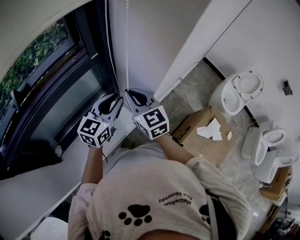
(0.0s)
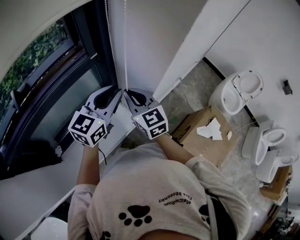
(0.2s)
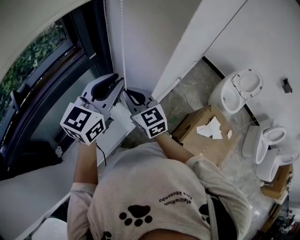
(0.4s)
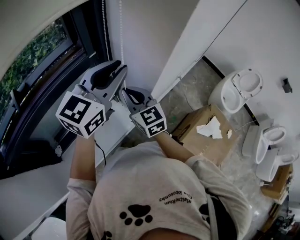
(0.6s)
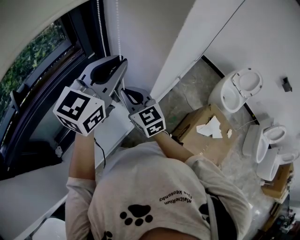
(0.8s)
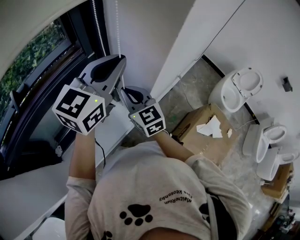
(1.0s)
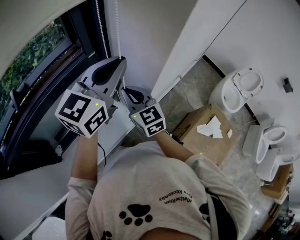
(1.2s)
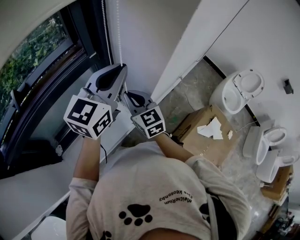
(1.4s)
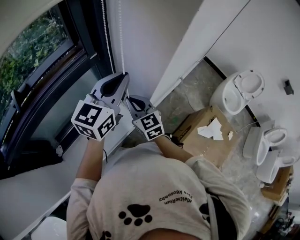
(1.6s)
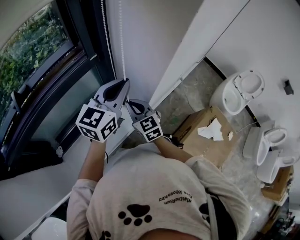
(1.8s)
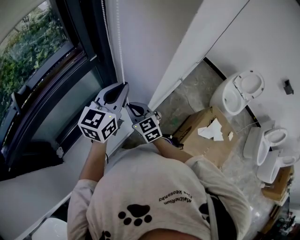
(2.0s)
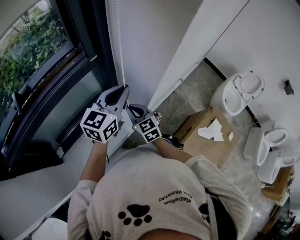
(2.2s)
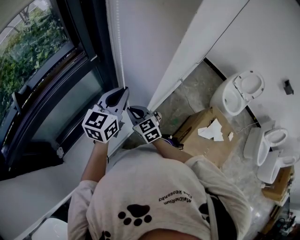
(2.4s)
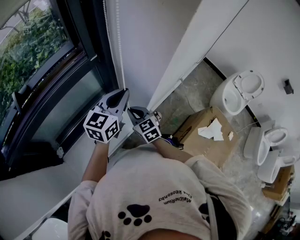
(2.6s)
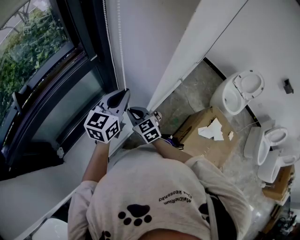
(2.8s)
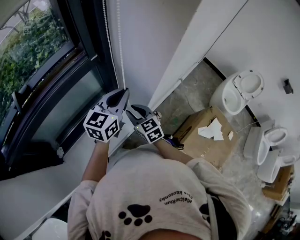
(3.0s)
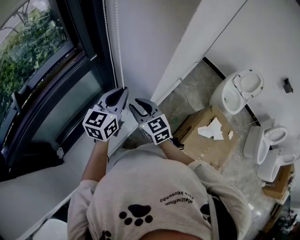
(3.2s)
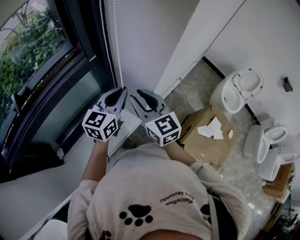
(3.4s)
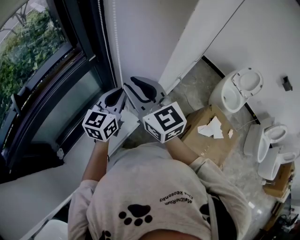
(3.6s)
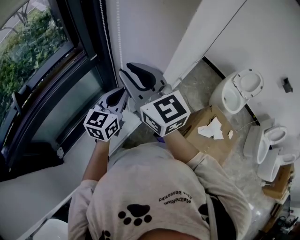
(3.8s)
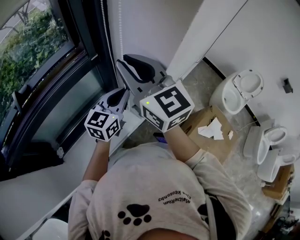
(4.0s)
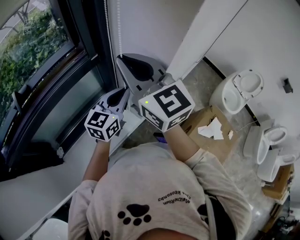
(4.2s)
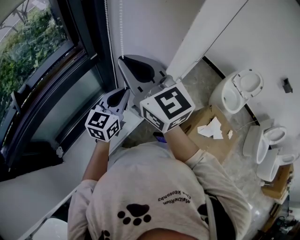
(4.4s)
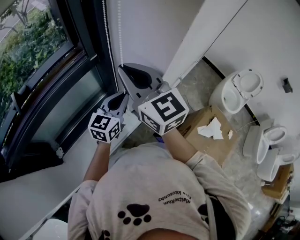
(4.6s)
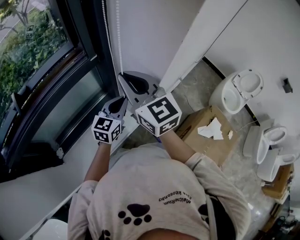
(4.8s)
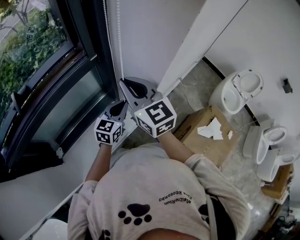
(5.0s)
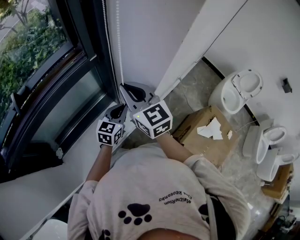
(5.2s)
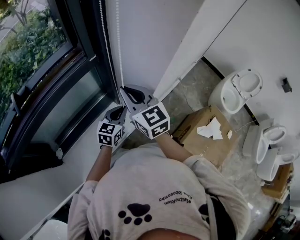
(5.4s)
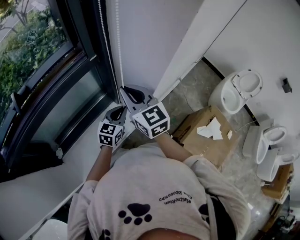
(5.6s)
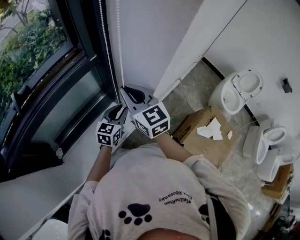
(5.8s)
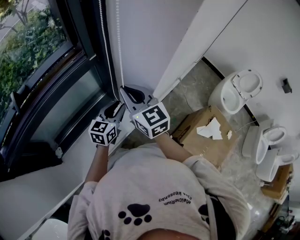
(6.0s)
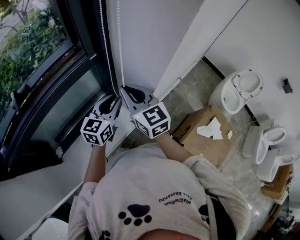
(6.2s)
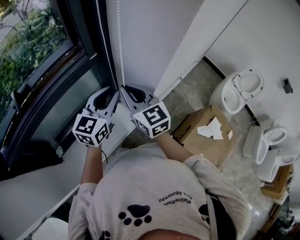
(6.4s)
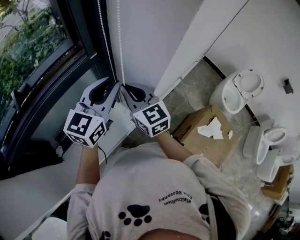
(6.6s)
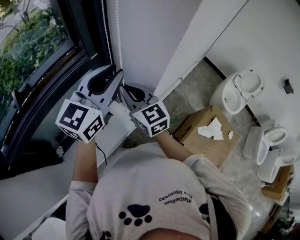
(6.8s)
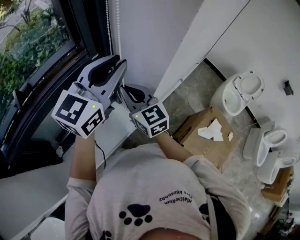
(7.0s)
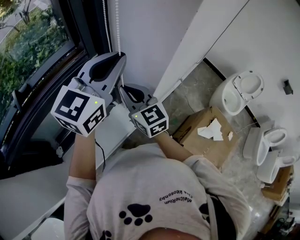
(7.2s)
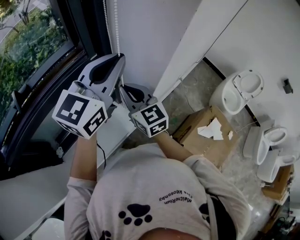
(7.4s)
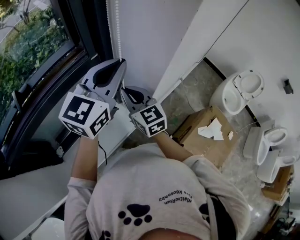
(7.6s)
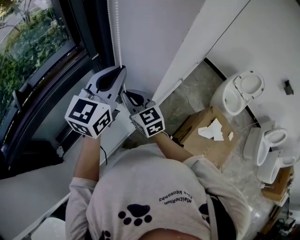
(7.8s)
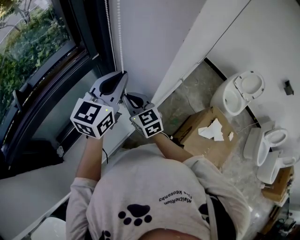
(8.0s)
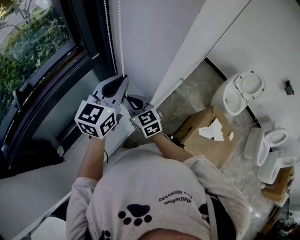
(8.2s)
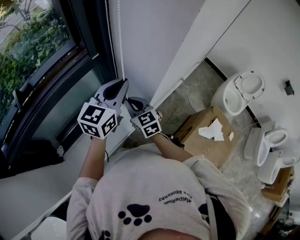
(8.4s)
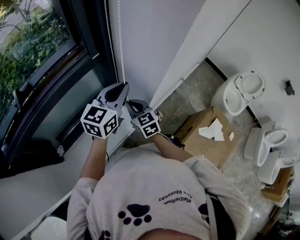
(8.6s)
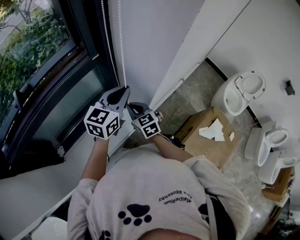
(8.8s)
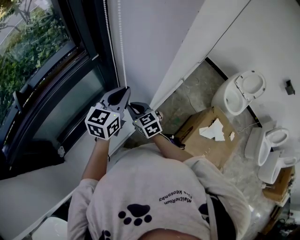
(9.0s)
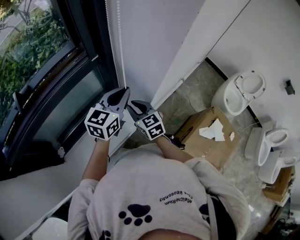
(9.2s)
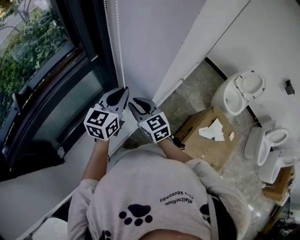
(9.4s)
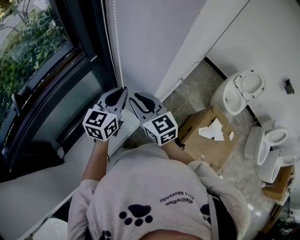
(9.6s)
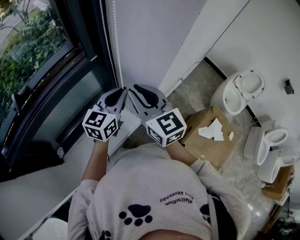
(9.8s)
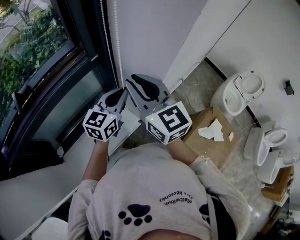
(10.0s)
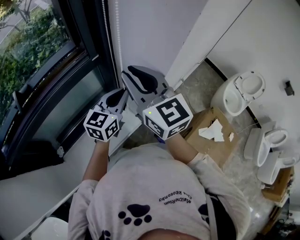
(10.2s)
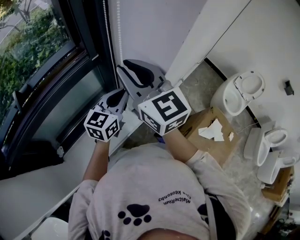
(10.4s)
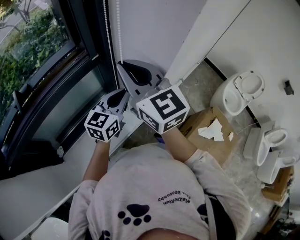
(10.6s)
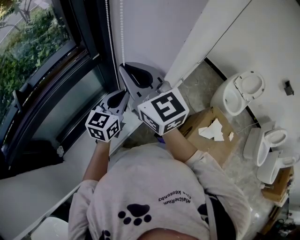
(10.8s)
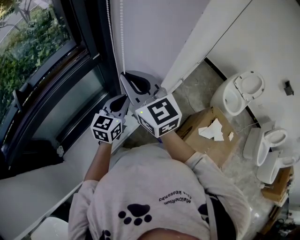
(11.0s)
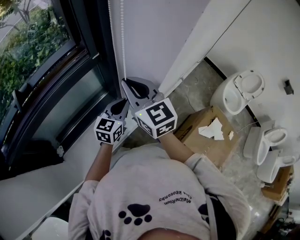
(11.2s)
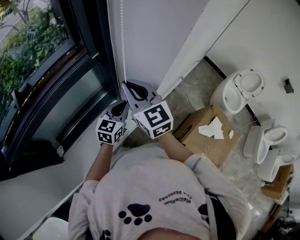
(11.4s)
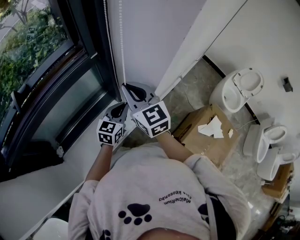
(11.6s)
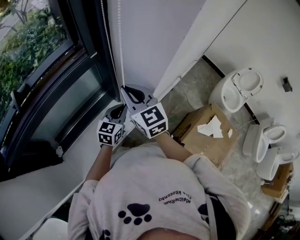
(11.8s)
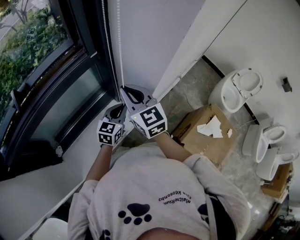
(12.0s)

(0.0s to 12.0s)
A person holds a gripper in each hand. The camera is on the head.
0.0s - 1.6s: The right gripper shifts some 5 cm downward. The left gripper is displaced upward by some 10 cm, and closes.
1.6s - 3.0s: The grippers both shift downward by some 10 cm. The right gripper opens up.
3.0s - 4.4s: The right gripper shifts approximately 30 cm upward, rotates about 30 degrees, and closes its fingers.
4.4s - 6.0s: Both grippers move downward, some 15 cm. The left gripper opens.
6.0s - 7.6s: The left gripper heads upward, covering some 25 cm, changes its angle by some 20 degrees, and closes its fingers.
7.6s - 9.0s: The two grippers go some 15 cm downward.
9.0s - 10.4s: The right gripper is displaced upward by approximately 30 cm, and swivels roughly 30 degrees.
10.4s - 12.0s: The grippers both shift downward by roughly 15 cm.

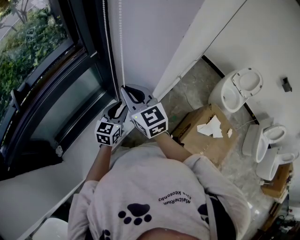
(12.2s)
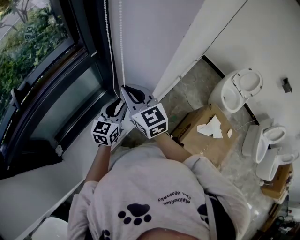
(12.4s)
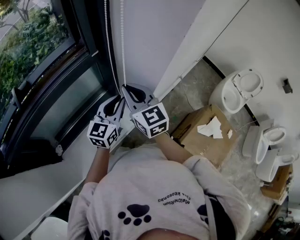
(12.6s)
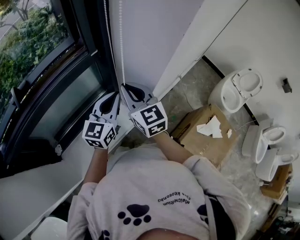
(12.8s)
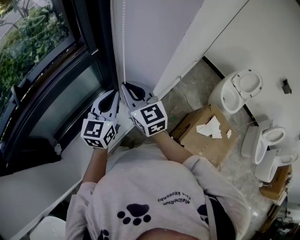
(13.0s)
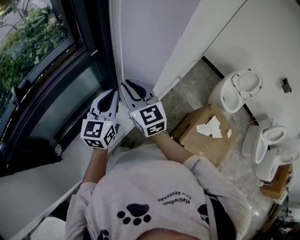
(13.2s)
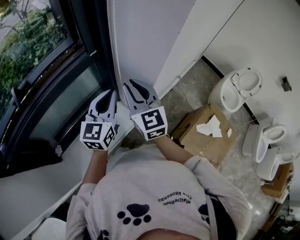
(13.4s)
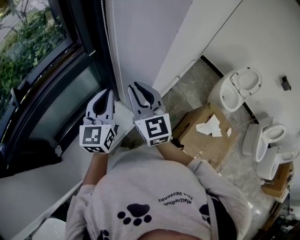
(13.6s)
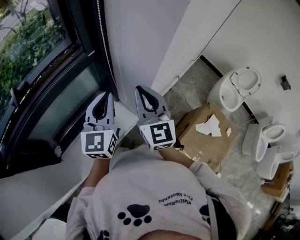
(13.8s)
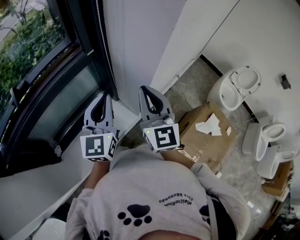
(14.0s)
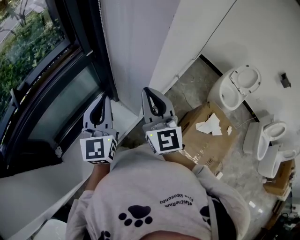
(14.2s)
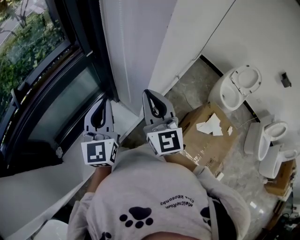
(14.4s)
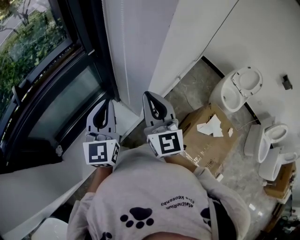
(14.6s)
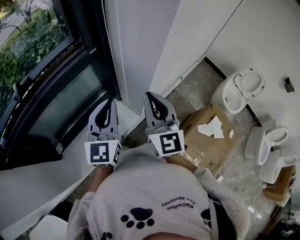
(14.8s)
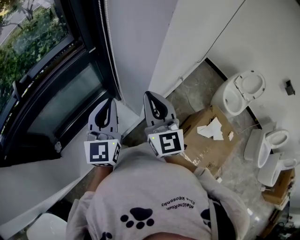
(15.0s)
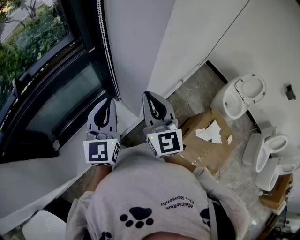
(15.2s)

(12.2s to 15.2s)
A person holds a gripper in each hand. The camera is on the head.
12.2s - 13.8s: The right gripper goes approximately 5 cm to the right; the left gripper goes approximately 20 cm upward, turns by about 30 degrees, and closes.
13.8s - 15.2s: The grippers stay close to where they were, moving slightly.

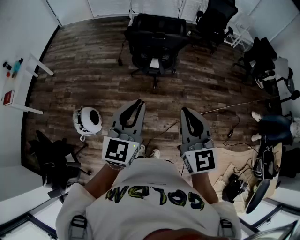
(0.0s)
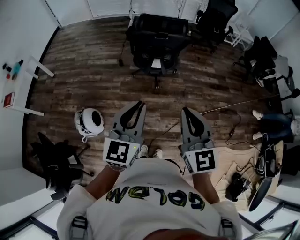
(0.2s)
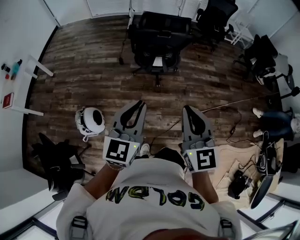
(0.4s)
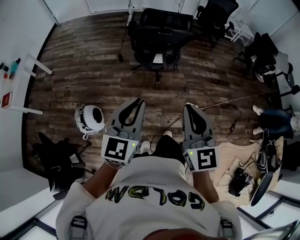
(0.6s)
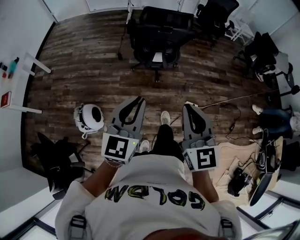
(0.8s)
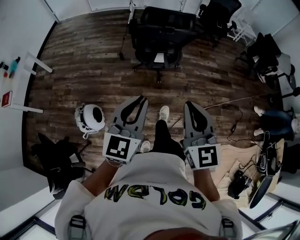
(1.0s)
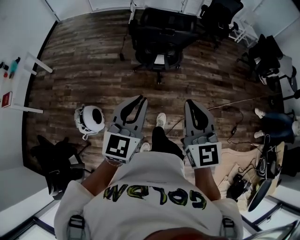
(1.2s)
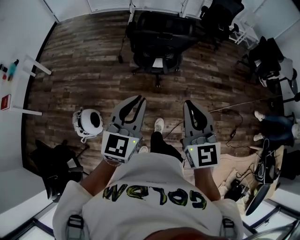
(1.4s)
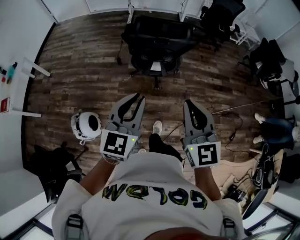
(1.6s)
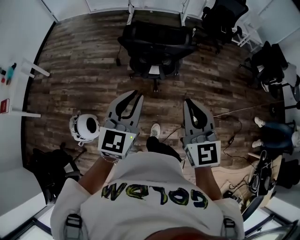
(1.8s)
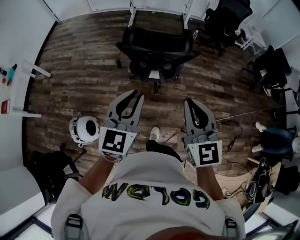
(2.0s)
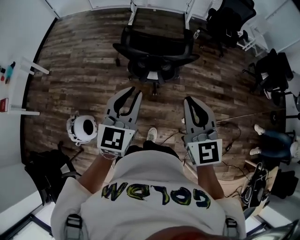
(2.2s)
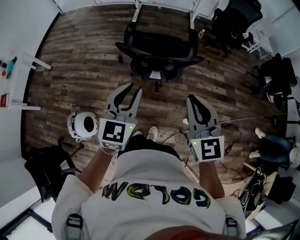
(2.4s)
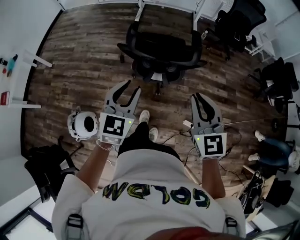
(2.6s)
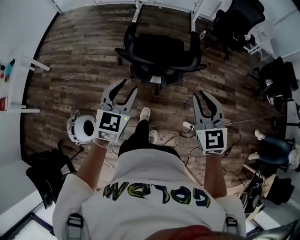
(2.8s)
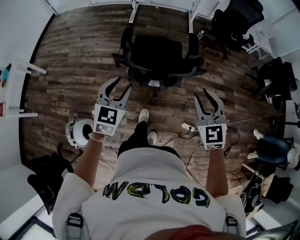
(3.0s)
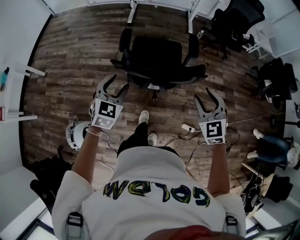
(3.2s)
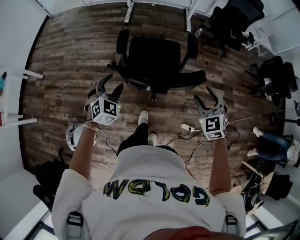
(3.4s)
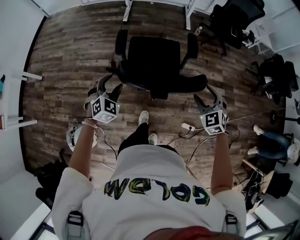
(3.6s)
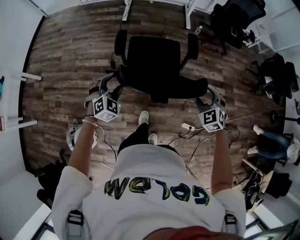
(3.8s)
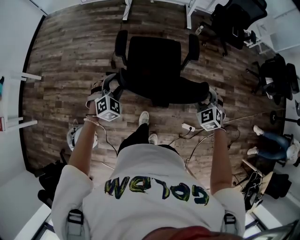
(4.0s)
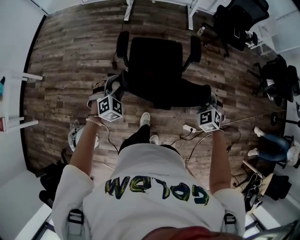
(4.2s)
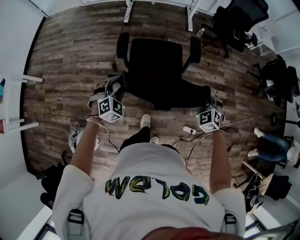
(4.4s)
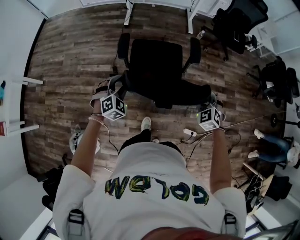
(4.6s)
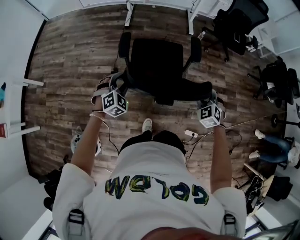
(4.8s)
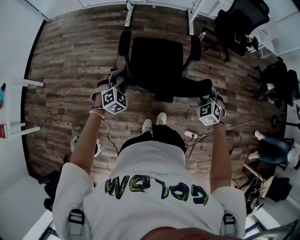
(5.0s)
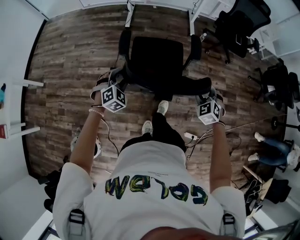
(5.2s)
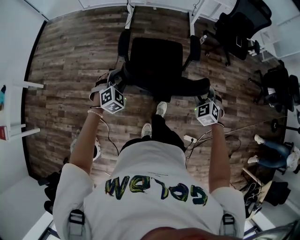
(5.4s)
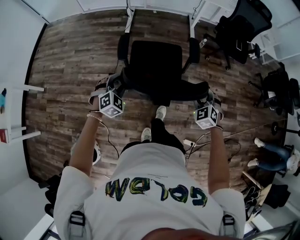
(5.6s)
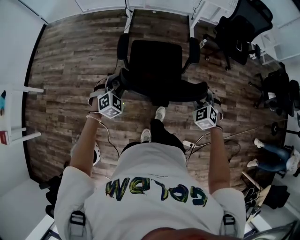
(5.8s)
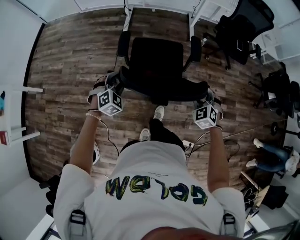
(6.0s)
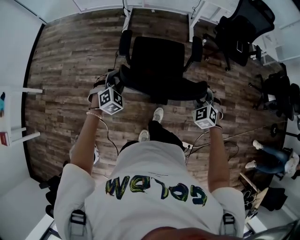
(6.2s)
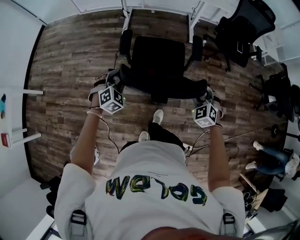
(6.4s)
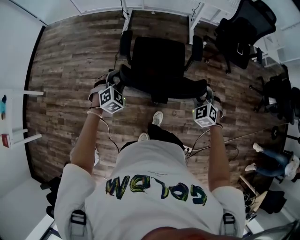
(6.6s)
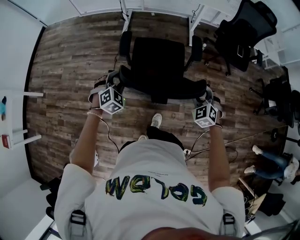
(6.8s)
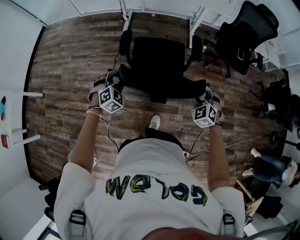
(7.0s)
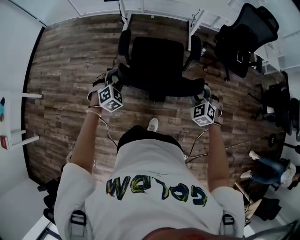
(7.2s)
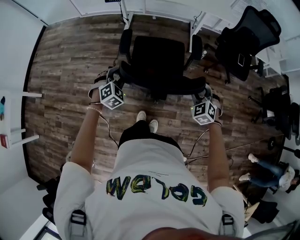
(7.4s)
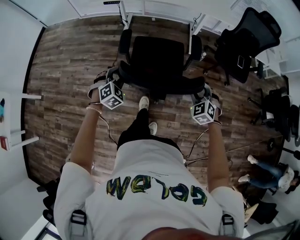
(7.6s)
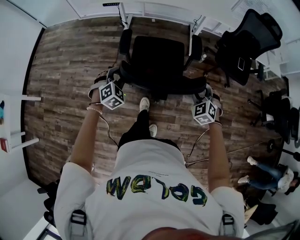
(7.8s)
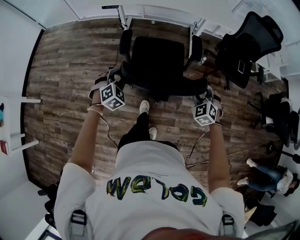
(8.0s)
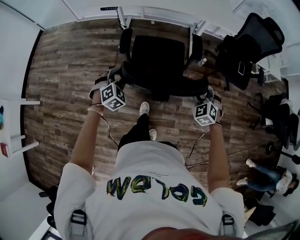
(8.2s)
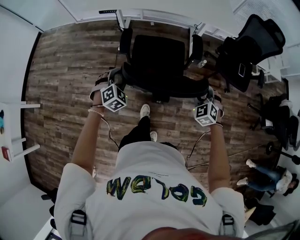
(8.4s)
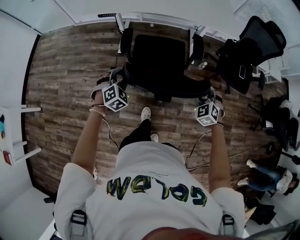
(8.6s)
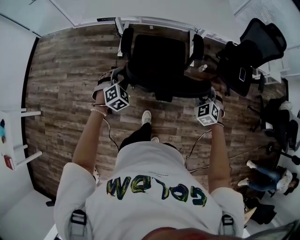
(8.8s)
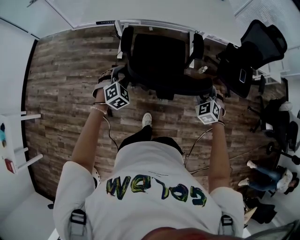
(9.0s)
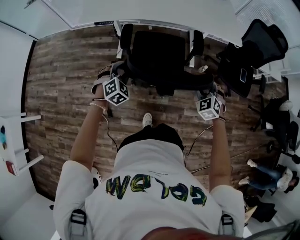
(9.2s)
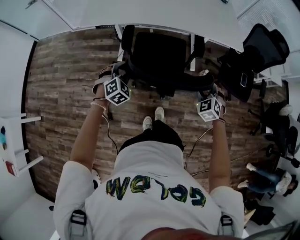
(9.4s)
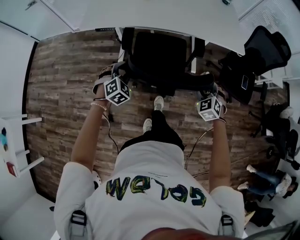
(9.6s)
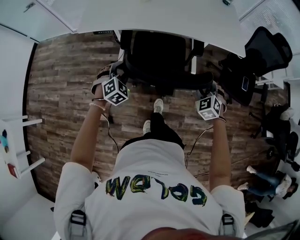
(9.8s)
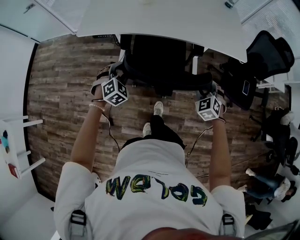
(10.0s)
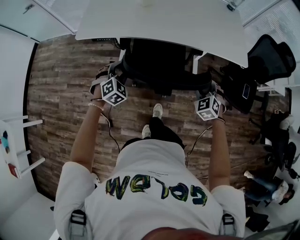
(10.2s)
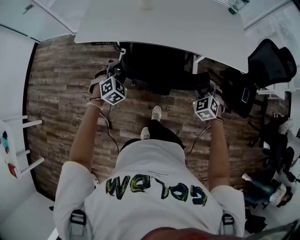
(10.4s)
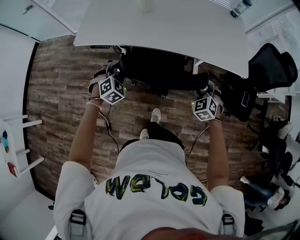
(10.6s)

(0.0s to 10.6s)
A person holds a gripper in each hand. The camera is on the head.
0.0s - 1.6s: The grippers both shift forward by about 15 cm.
1.6s - 3.0s: The grippers both shift forward by roughly 30 cm. The right gripper rotates some 20 degrees, and opens up. The left gripper opens its fingers.
3.0s - 4.6s: The two grippers go about 25 cm forward and downward. The left gripper changes its angle by some 40 degrees. Meanwhile the right gripper swivels approximately 30 degrees.
4.6s - 6.0s: Both grippers move forward, approximately 15 cm.
6.0s - 7.6s: Both grippers travel together forward, some 20 cm.
7.6s - 9.0s: The grippers both shift forward by some 25 cm.
9.0s - 10.6s: Both grippers move forward, about 25 cm.
